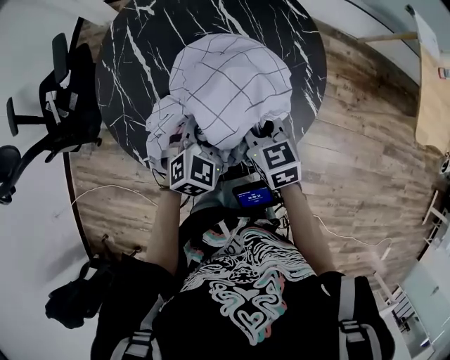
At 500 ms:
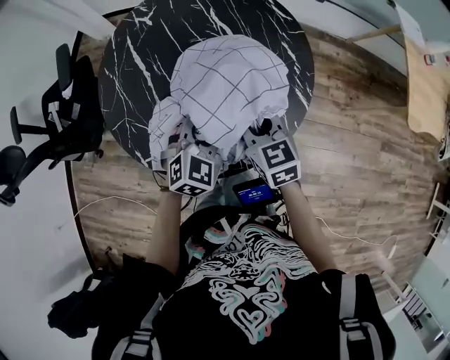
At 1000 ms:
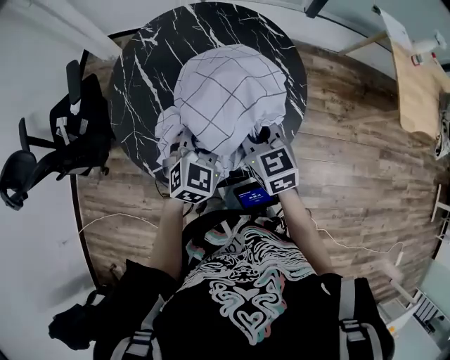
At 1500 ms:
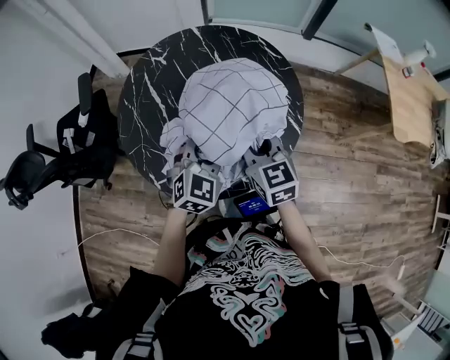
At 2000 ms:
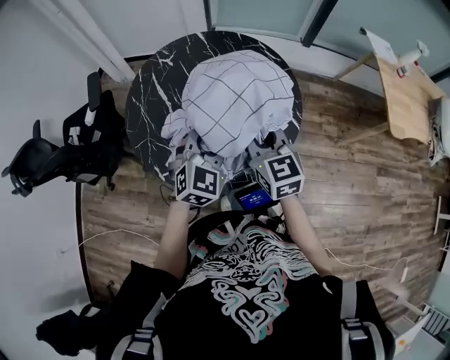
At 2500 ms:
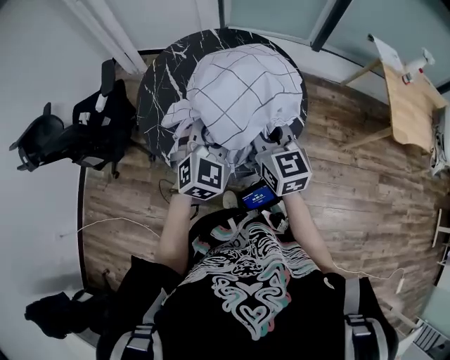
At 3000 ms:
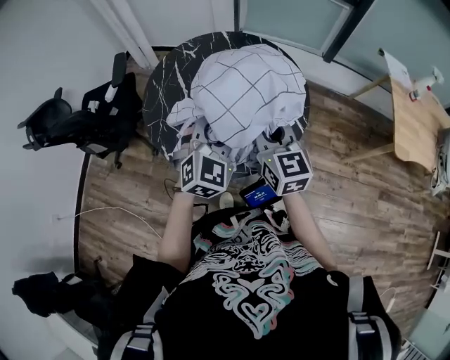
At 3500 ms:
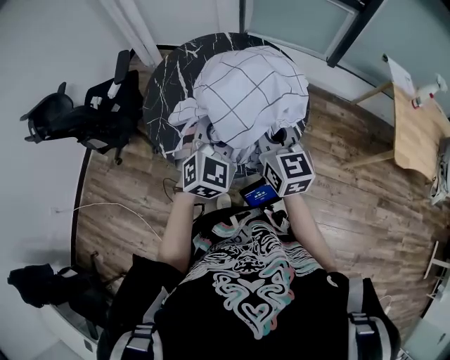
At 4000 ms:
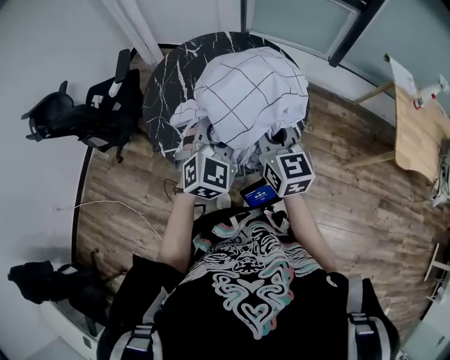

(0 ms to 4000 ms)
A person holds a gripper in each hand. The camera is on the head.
0 ms - 2000 ms: The grippers both shift upward by approximately 20 cm. The left gripper rotates about 20 degrees; the right gripper rotates roughly 20 degrees.
2000 ms - 4000 ms: The right gripper ends up approximately 5 cm from where it was, while the left gripper is displaced upward by roughly 5 cm.

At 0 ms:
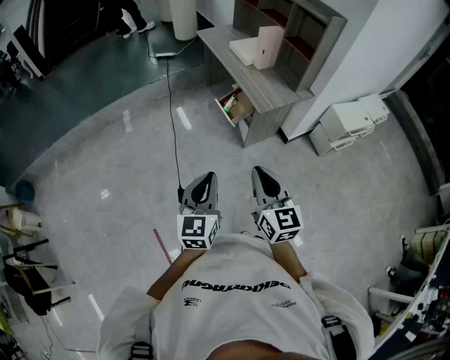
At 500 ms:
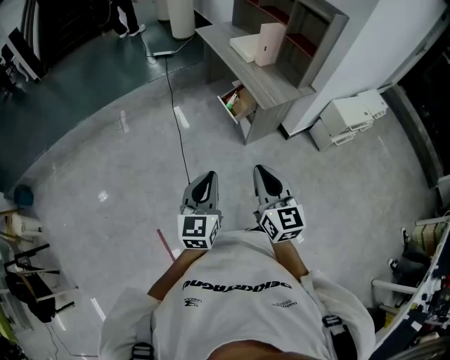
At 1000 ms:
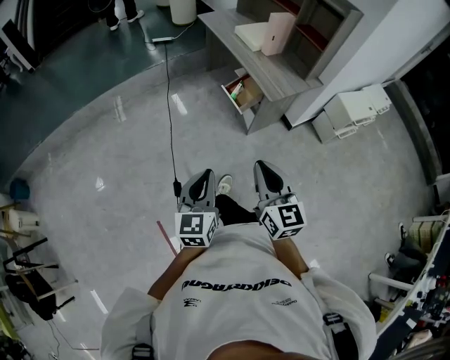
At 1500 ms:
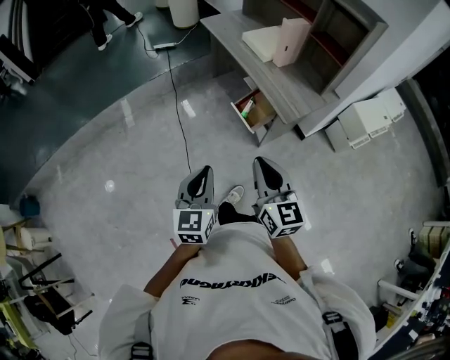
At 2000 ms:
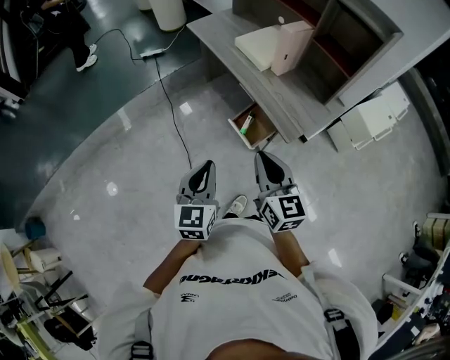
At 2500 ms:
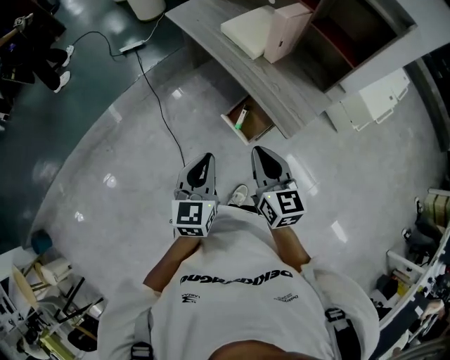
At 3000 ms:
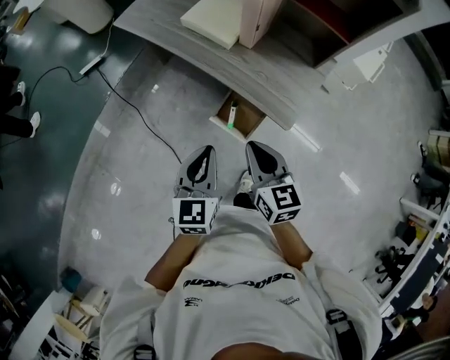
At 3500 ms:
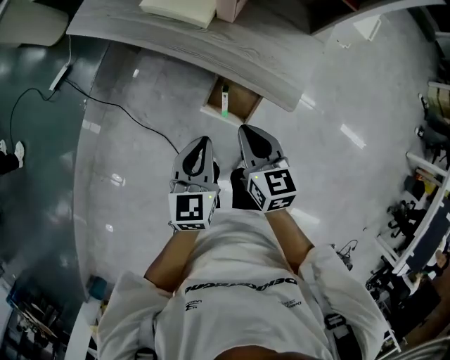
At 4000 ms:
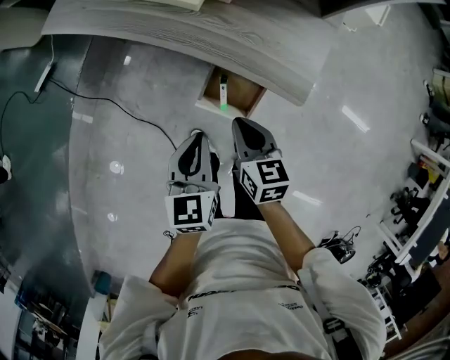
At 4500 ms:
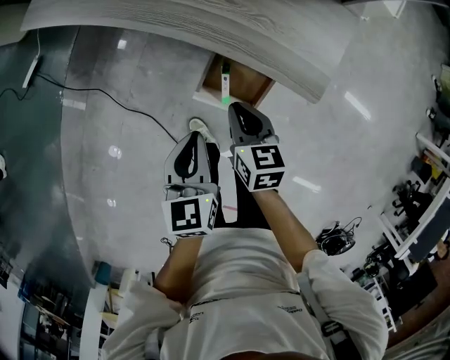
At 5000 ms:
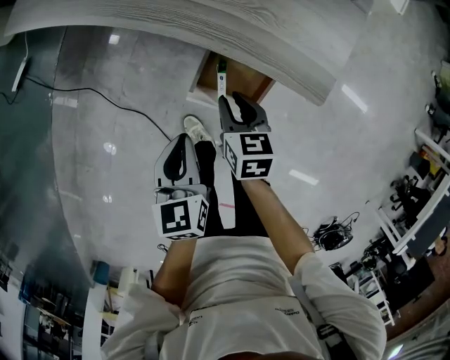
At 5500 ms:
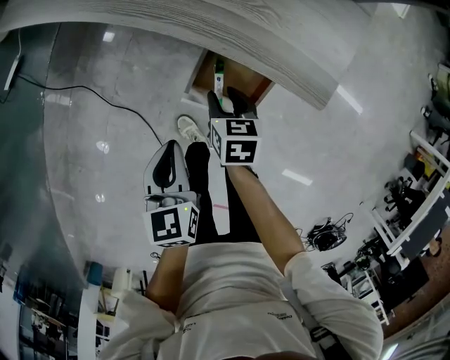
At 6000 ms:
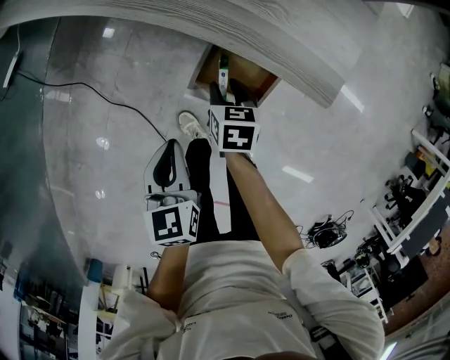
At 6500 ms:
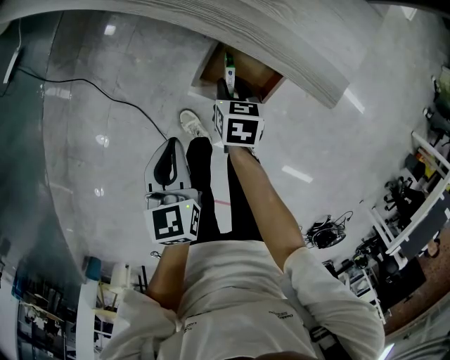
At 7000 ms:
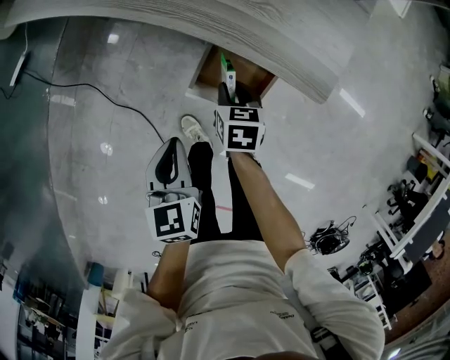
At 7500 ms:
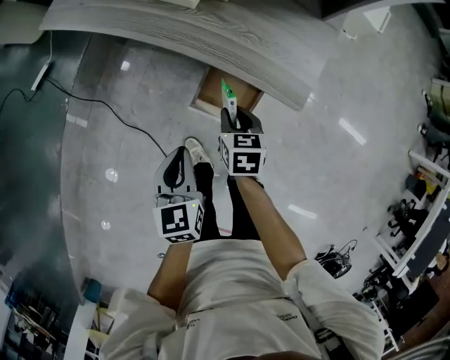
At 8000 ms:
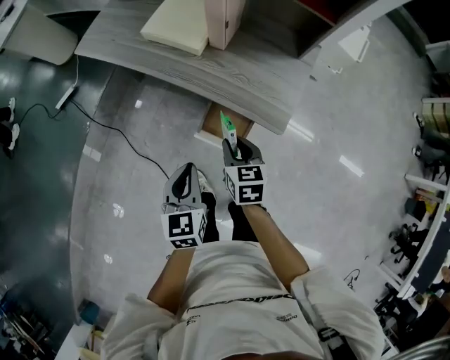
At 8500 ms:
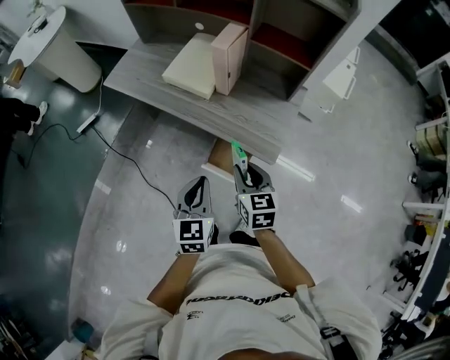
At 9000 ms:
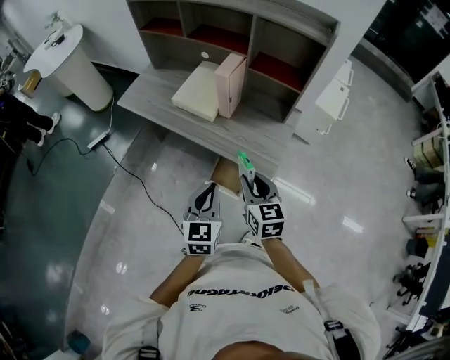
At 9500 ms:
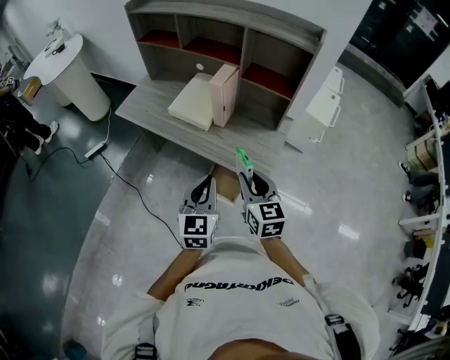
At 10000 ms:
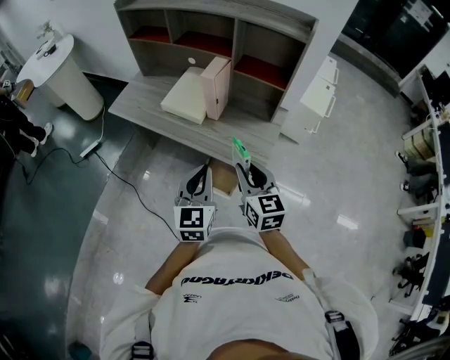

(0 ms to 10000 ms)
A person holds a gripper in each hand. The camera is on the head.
0 ms - 2000 ms: The grippers both shift forward by about 35 cm.
2000 ms - 4000 ms: The right gripper heads downward, covering roughly 30 cm, and changes its angle by about 40 degrees, while the left gripper shifts by about 35 cm, and changes its angle by approximately 30 degrees.
4000 ms - 6000 ms: The left gripper shifts about 15 cm downward, while the right gripper heads downward, covering roughly 20 cm, turns by roughly 20 degrees, and opens.
6000 ms - 8000 ms: The grippers both shift upward by about 20 cm. The right gripper turns by approximately 20 degrees.
8000 ms - 10000 ms: Both grippers move upward, about 25 cm. The left gripper changes its angle by about 20 degrees, while the right gripper swivels approximately 30 degrees.

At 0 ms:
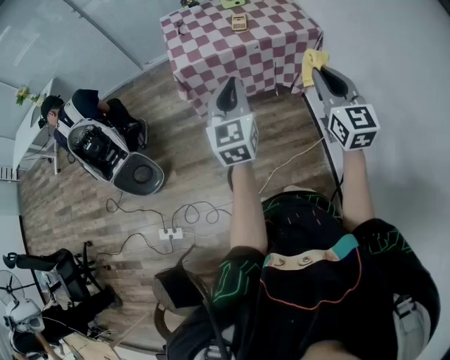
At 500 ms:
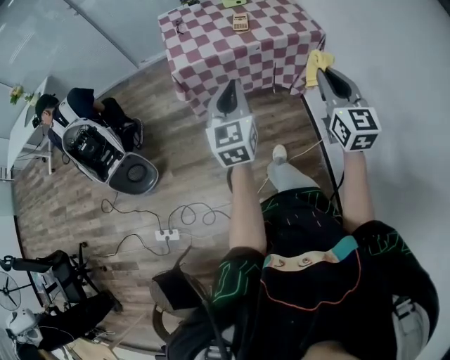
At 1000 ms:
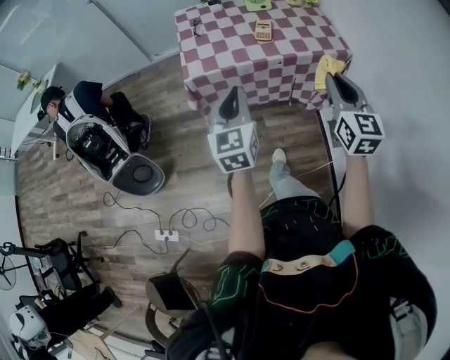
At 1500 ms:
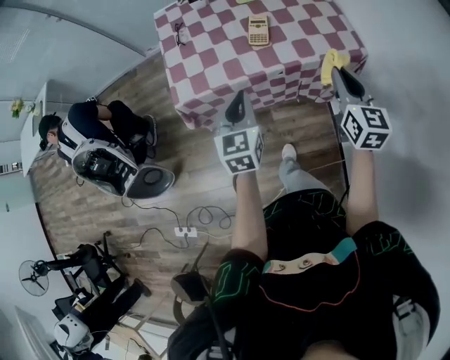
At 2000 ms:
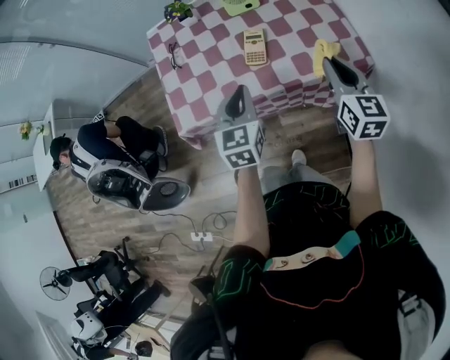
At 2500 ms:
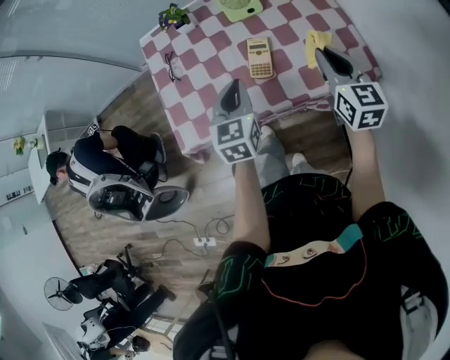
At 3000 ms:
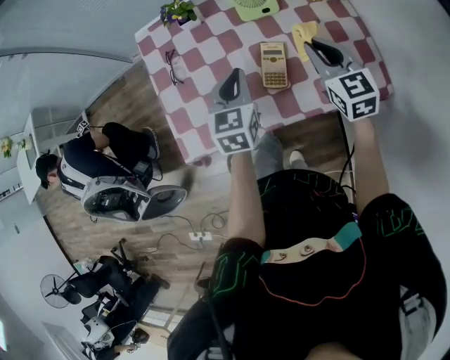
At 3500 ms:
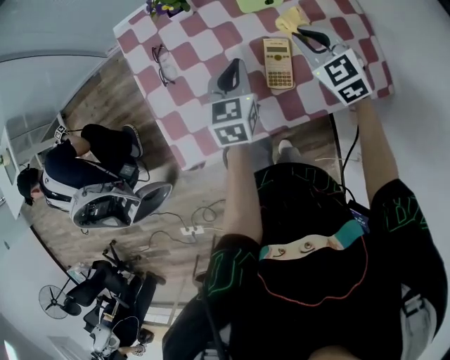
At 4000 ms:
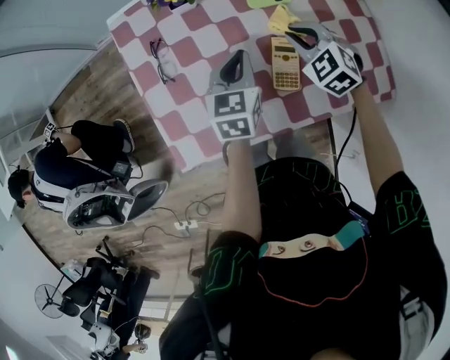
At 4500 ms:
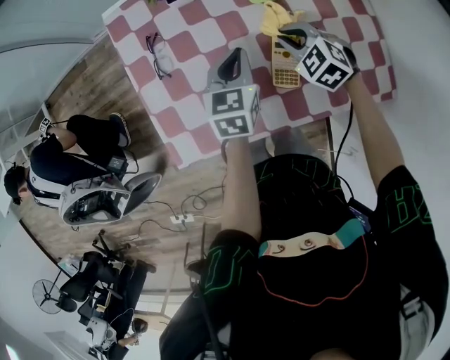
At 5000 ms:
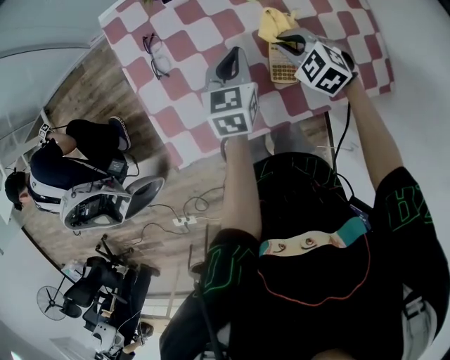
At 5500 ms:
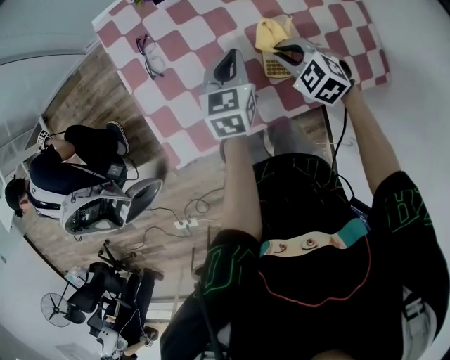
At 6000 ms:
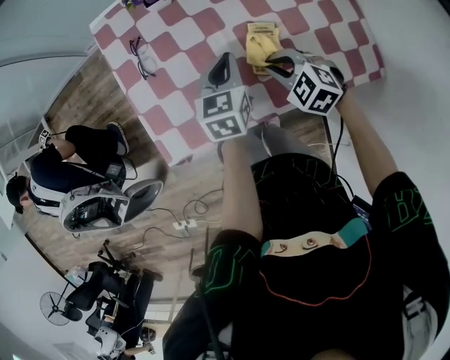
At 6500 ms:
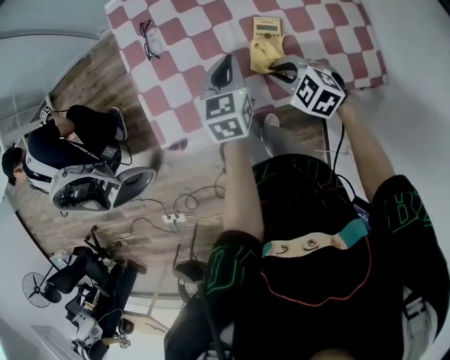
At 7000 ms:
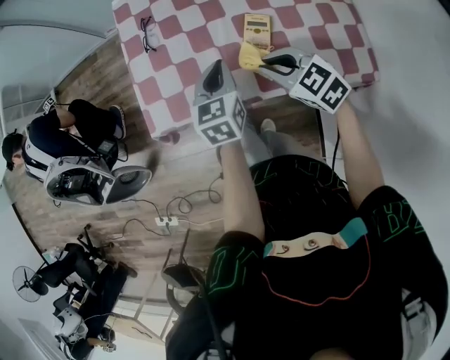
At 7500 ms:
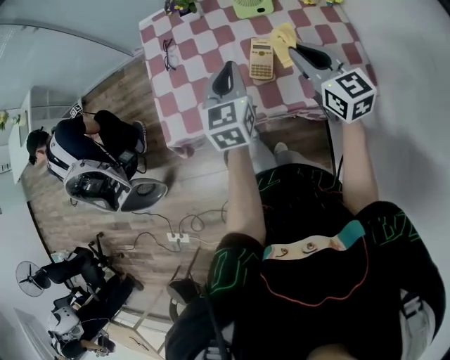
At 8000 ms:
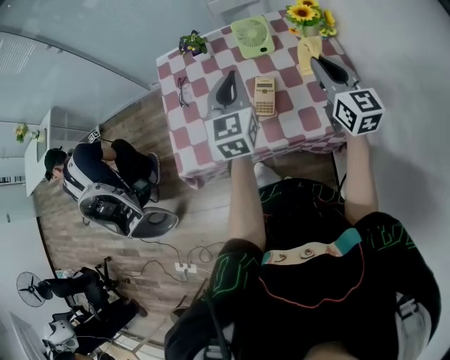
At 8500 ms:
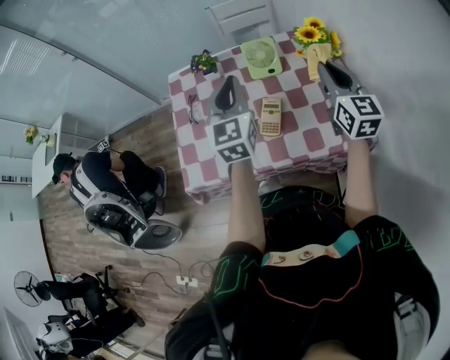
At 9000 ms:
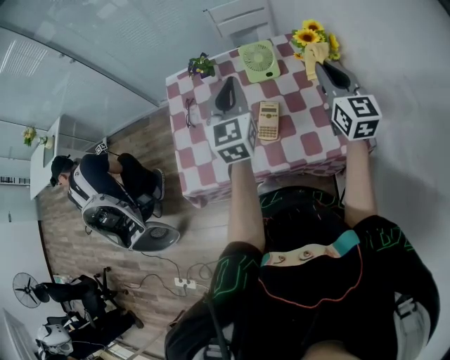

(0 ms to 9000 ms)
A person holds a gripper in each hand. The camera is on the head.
0 ms - 2000 ms: The two grippers go approximately 40 cm forward. The left gripper rotates some 20 degrees.
2000 ms - 4500 ms: The right gripper moves forward, to the left and downward, some 35 cm, and angles its fingers downward, by approximately 40 degrees. Meanwhile the left gripper is displaced forward and downward by approximately 25 cm.
4500 ms - 7000 ms: The right gripper shifts roughly 15 cm backward and upward, and rotates roughly 20 degrees, while the left gripper shifts roughly 10 cm backward.
7000 ms - 9000 ms: The left gripper travels upward and forward by some 20 cm, and rotates some 30 degrees. The right gripper travels to the right, upward and forward by roughly 30 cm, and tips its fingers upward by about 40 degrees.

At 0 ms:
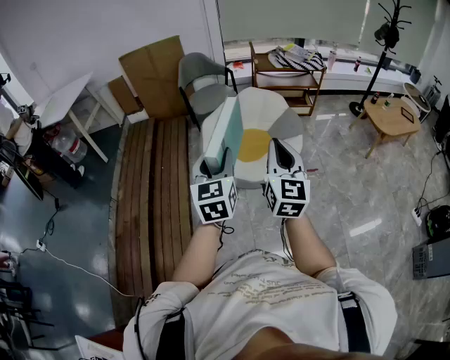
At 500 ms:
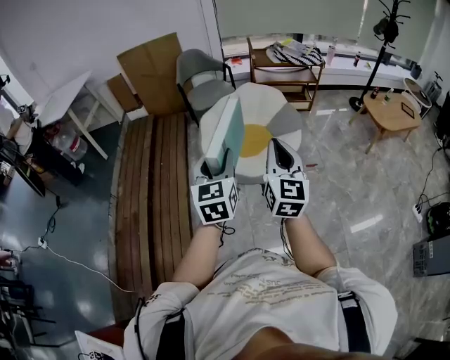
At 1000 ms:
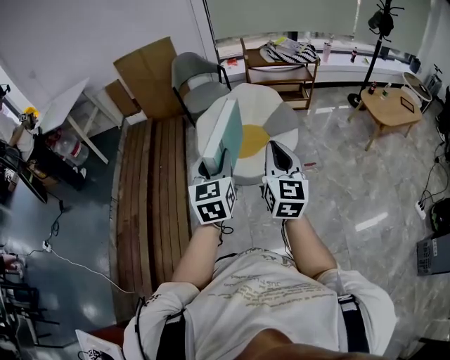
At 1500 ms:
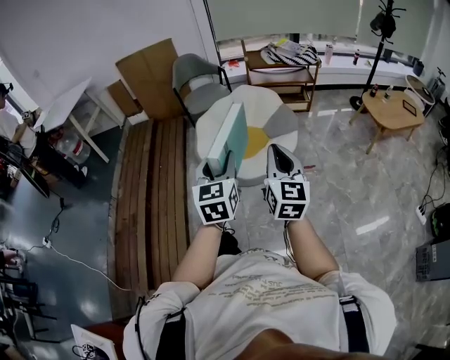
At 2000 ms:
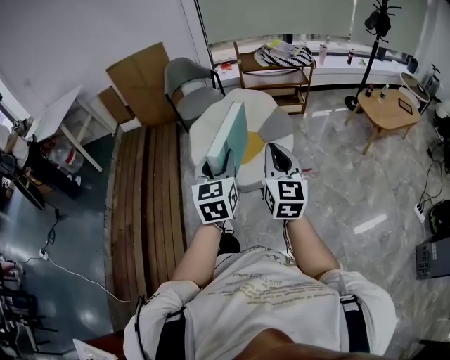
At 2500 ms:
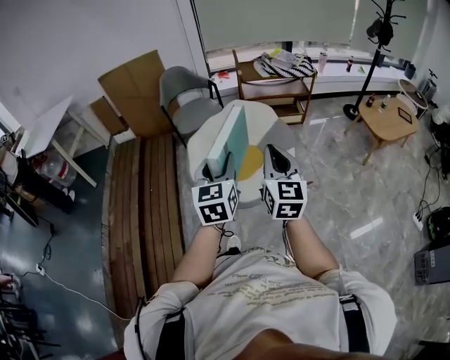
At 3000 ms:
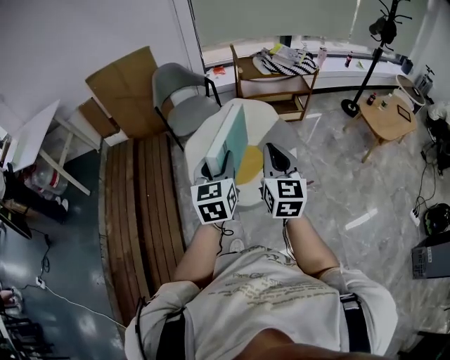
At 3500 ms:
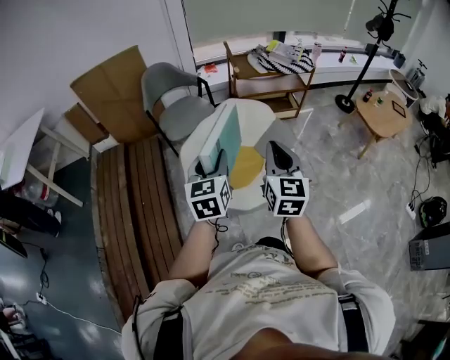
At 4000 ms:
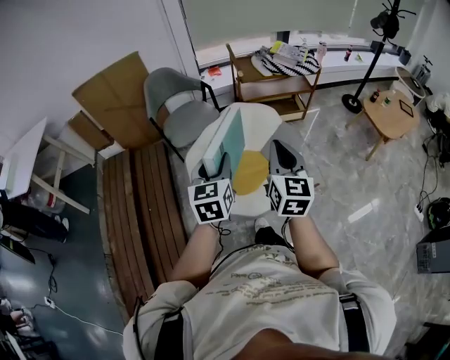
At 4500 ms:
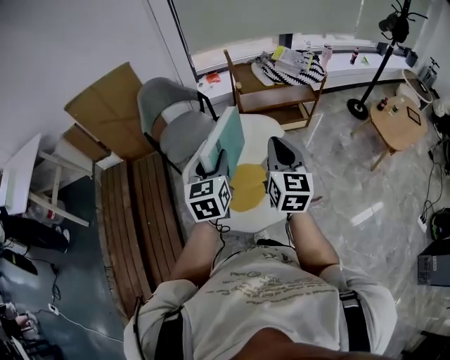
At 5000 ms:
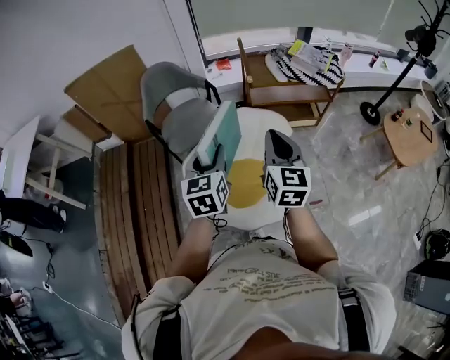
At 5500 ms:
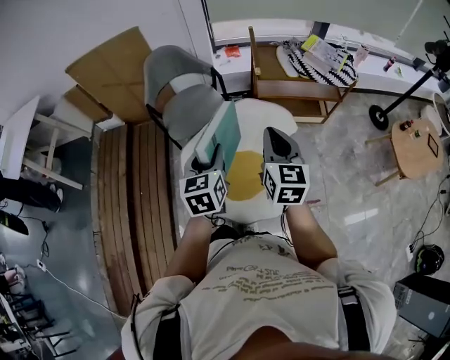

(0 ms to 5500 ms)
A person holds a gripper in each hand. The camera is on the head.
0 ms - 2000 ms: Both grippers travel together to the right, some 10 cm.
2000 ms - 3500 ms: Both grippers move forward and to the left, about 30 cm.
3500 ms - 5500 ms: The two grippers go about 25 cm forward.
